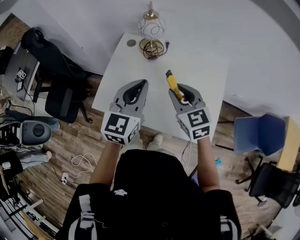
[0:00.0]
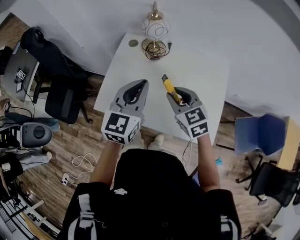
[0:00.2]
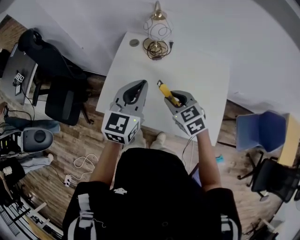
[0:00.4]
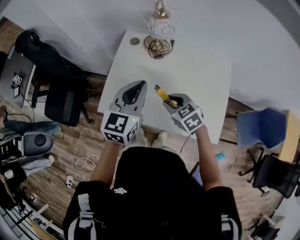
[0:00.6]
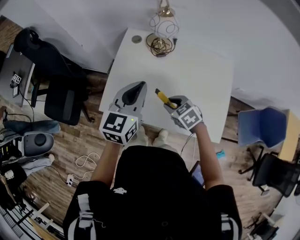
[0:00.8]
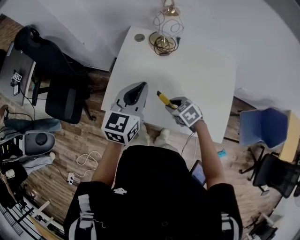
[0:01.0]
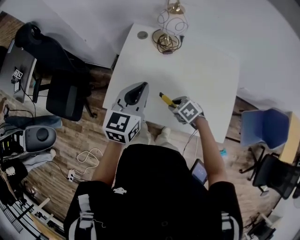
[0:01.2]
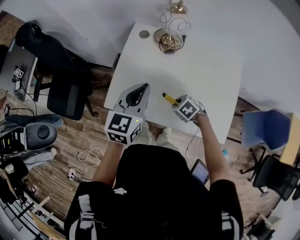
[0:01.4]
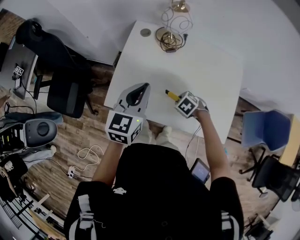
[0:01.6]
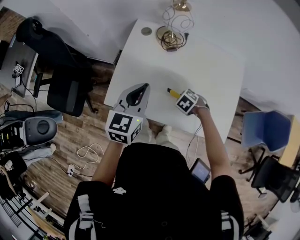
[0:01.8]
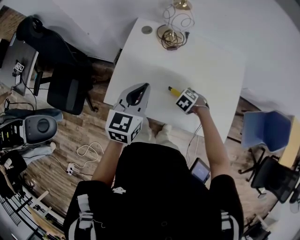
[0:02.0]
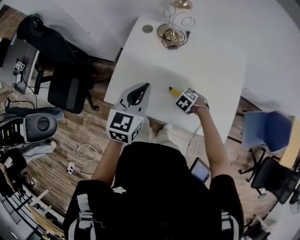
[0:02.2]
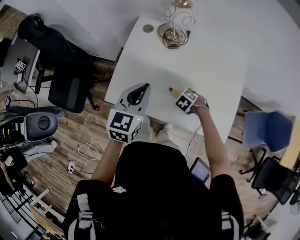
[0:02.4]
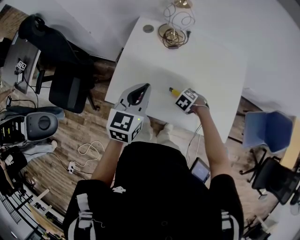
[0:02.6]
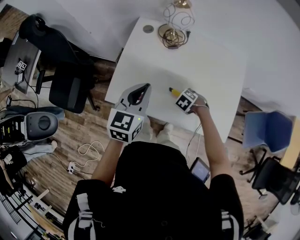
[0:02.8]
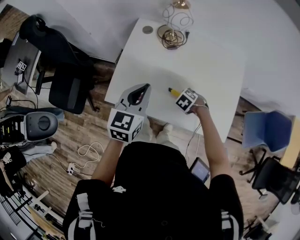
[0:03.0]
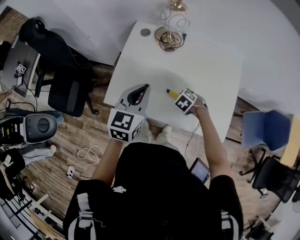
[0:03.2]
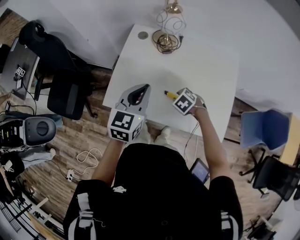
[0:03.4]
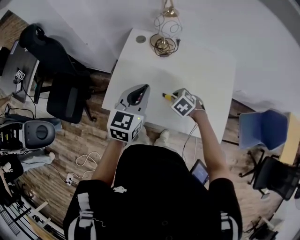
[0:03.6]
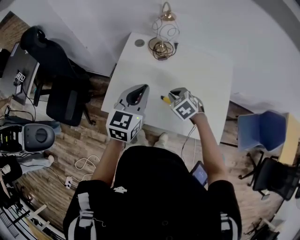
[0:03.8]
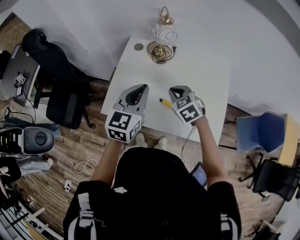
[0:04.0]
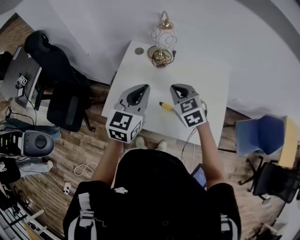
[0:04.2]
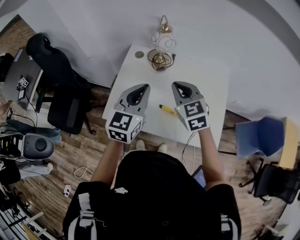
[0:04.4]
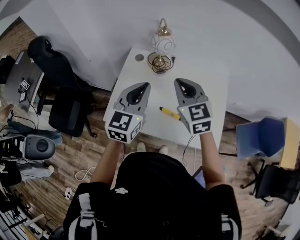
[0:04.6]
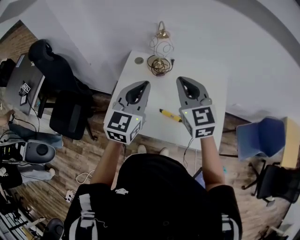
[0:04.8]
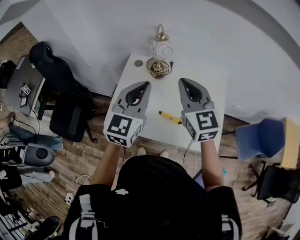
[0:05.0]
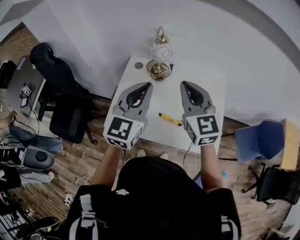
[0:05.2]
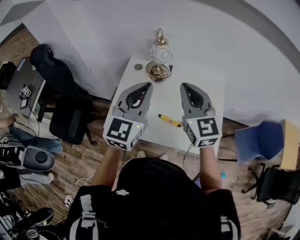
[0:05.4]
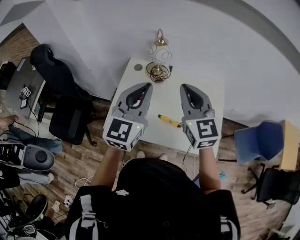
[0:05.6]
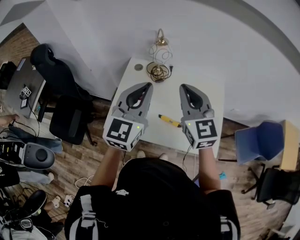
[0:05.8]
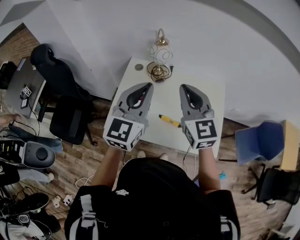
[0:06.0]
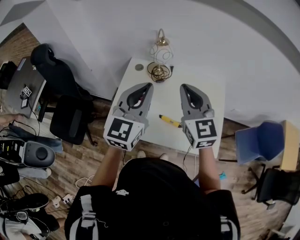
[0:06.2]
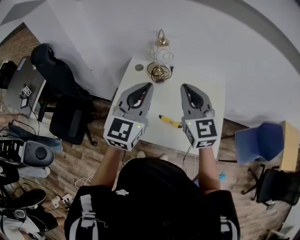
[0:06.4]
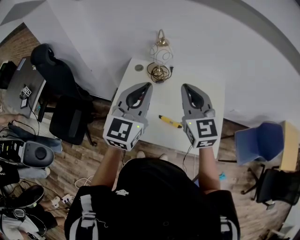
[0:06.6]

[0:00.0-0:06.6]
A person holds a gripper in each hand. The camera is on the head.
0:00.0 to 0:01.6: The left gripper ends up some 15 cm from where it was. Meanwhile the right gripper is displaced downward by about 30 cm, and tilts its fingers roughly 50 degrees downward.
0:01.6 to 0:03.2: The grippers move only a little.
0:03.2 to 0:05.0: The right gripper travels upward by roughly 40 cm, angles its fingers upward, by approximately 70 degrees, and closes; the left gripper heads upward, covering some 15 cm, and turns by some 20 degrees.
0:05.0 to 0:06.6: The grippers make only small movements.

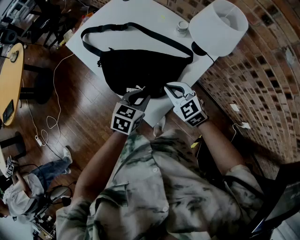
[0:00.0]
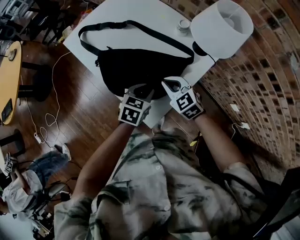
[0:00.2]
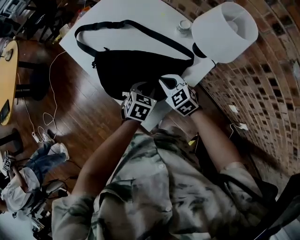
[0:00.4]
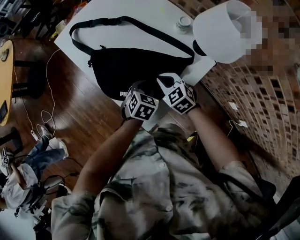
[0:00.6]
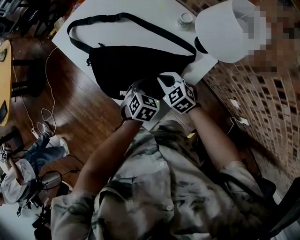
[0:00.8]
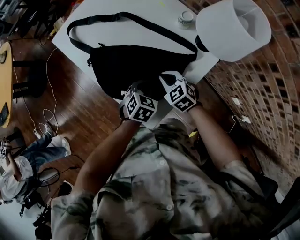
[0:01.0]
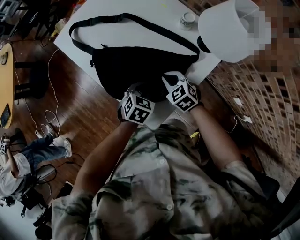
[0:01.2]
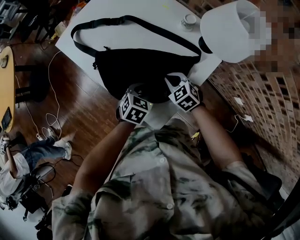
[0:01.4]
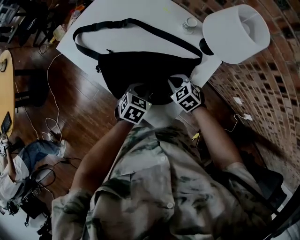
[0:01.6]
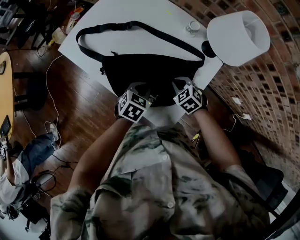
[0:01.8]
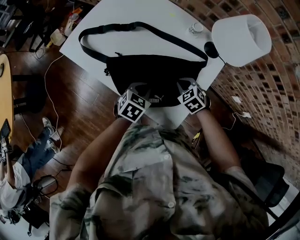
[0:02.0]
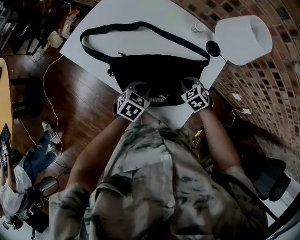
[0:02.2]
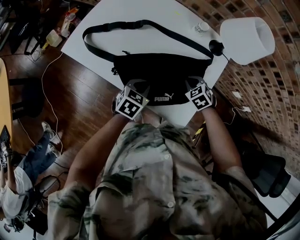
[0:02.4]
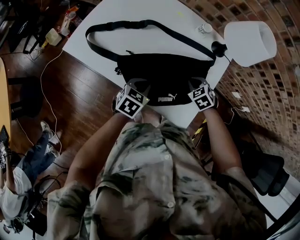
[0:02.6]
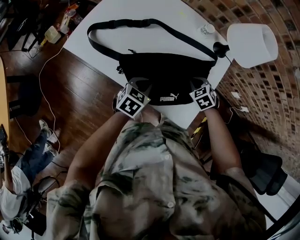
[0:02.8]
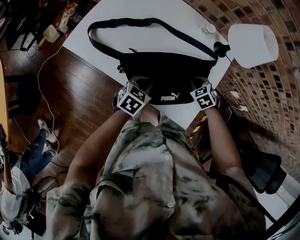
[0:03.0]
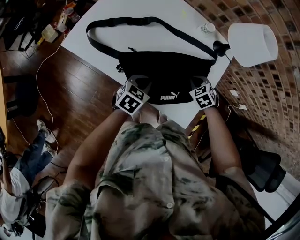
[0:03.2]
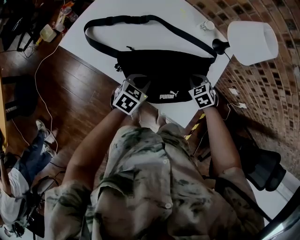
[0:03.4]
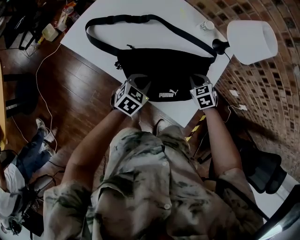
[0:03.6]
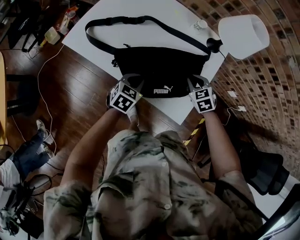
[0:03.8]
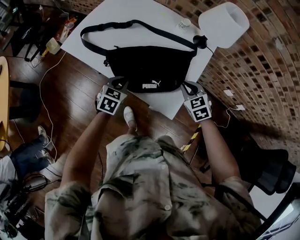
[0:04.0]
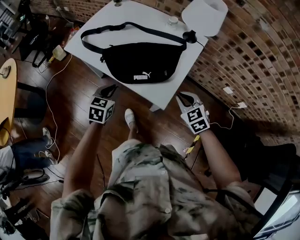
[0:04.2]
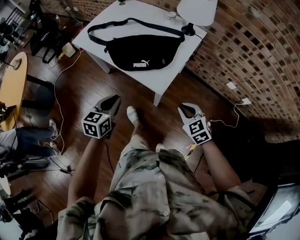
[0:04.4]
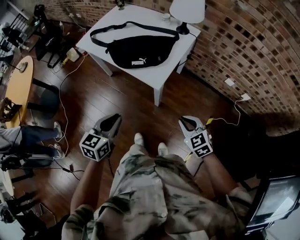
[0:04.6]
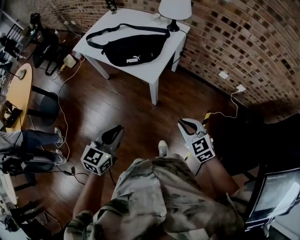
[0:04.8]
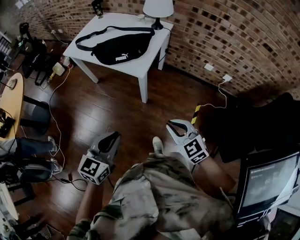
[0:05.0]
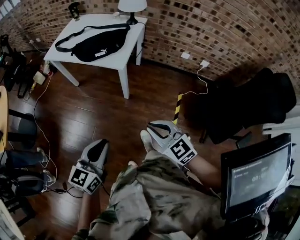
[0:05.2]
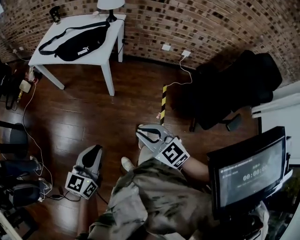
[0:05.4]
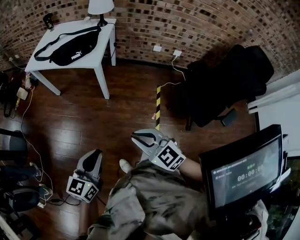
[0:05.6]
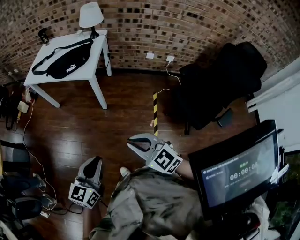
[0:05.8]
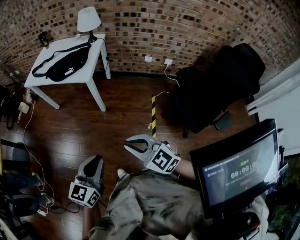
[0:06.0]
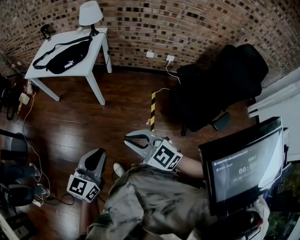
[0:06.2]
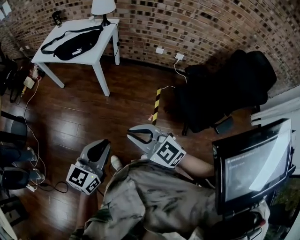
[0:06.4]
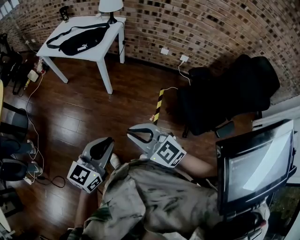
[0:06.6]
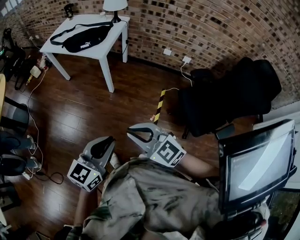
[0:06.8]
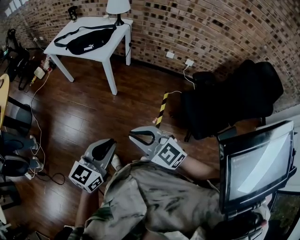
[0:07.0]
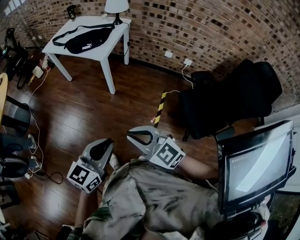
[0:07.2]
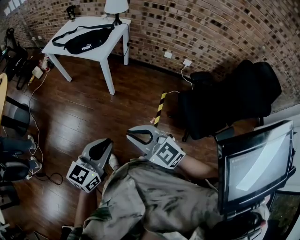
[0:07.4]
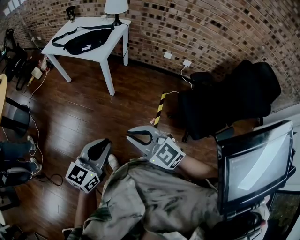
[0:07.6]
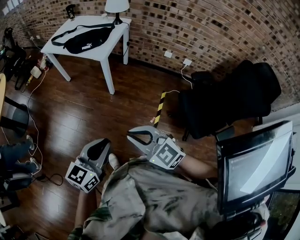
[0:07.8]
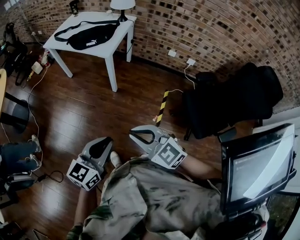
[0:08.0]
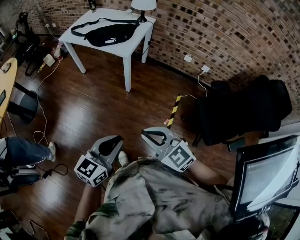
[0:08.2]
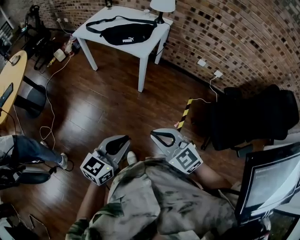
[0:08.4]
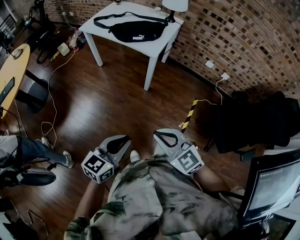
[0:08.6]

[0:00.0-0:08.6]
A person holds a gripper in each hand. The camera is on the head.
0:00.0 to 0:01.4: The grippers both shift downward and forward by some 10 cm.
0:01.4 to 0:02.8: The left gripper shifts by roughly 10 cm, and rotates roughly 20 degrees. Meanwhile the right gripper changes its angle by some 30 degrees.
0:02.8 to 0:04.4: The right gripper is displaced backward and to the right by approximately 35 cm, and changes its angle by about 30 degrees. The left gripper heads backward and upward, covering about 30 cm, and swivels roughly 30 degrees.
0:04.4 to 0:05.8: Both grippers are carried backward, some 50 cm. The right gripper rotates some 20 degrees; the left gripper turns by about 30 degrees.
0:05.8 to 0:07.2: The right gripper moves to the right and backward, about 10 cm. Meanwhile the left gripper moves to the right and backward, approximately 15 cm.
0:07.2 to 0:08.6: Both grippers move to the left and forward, approximately 20 cm.

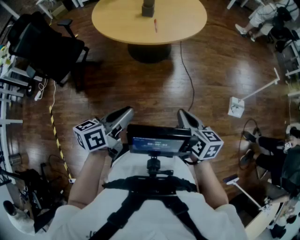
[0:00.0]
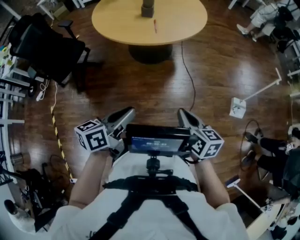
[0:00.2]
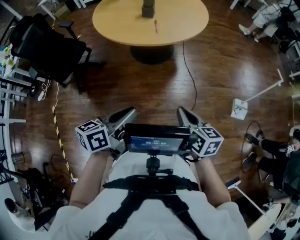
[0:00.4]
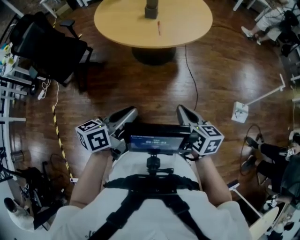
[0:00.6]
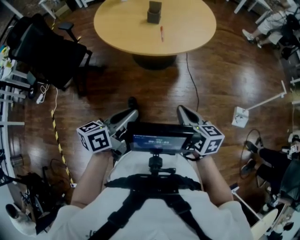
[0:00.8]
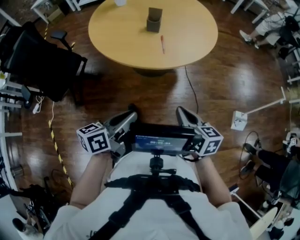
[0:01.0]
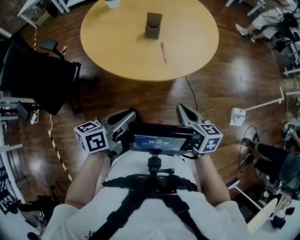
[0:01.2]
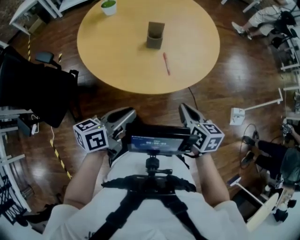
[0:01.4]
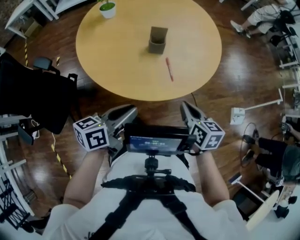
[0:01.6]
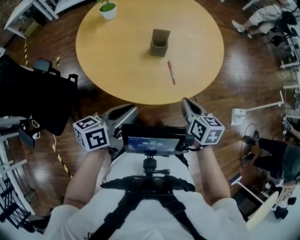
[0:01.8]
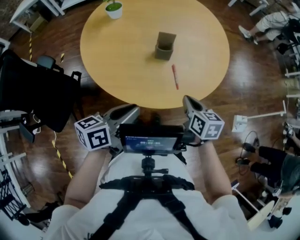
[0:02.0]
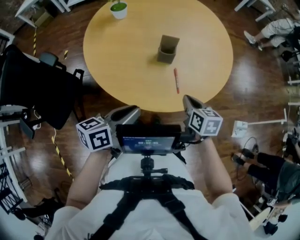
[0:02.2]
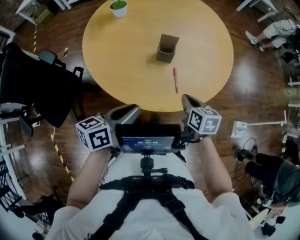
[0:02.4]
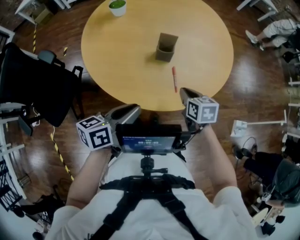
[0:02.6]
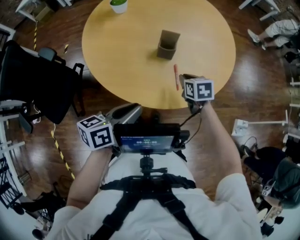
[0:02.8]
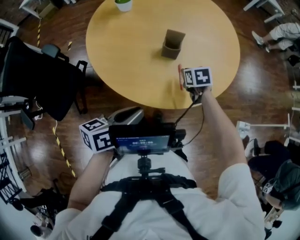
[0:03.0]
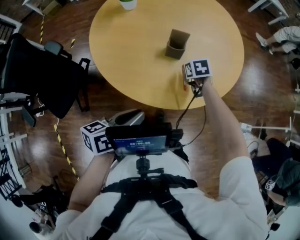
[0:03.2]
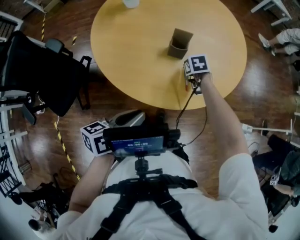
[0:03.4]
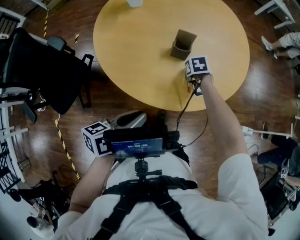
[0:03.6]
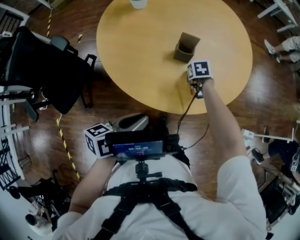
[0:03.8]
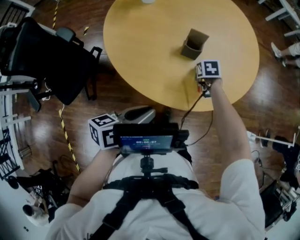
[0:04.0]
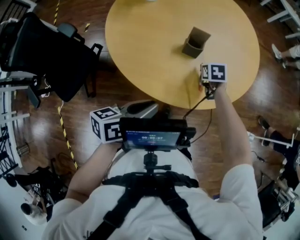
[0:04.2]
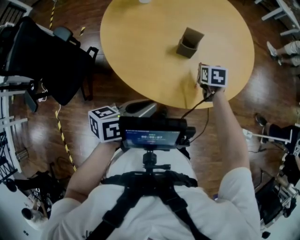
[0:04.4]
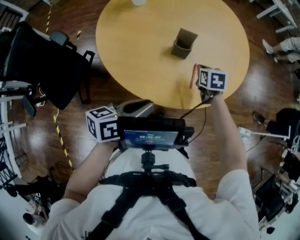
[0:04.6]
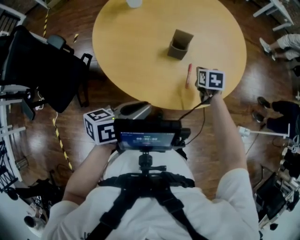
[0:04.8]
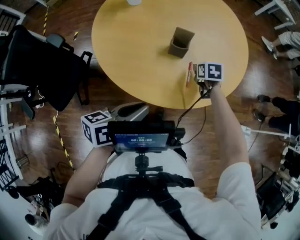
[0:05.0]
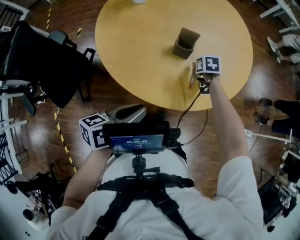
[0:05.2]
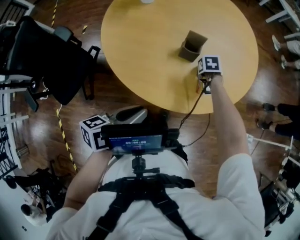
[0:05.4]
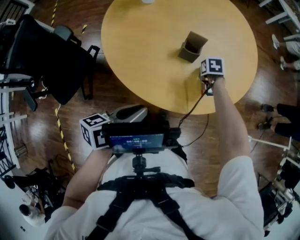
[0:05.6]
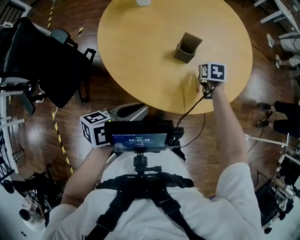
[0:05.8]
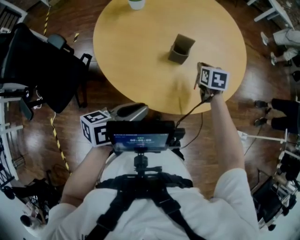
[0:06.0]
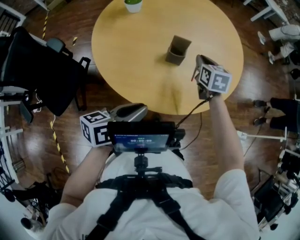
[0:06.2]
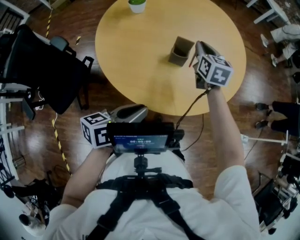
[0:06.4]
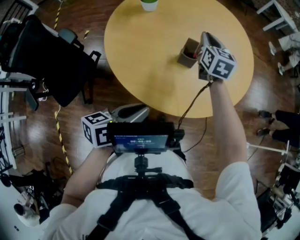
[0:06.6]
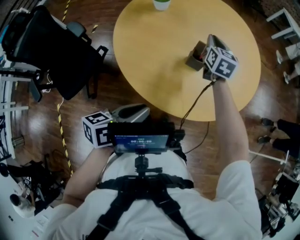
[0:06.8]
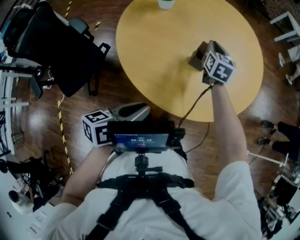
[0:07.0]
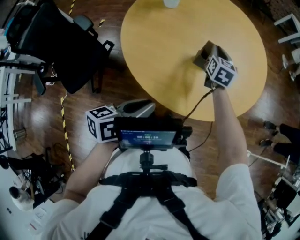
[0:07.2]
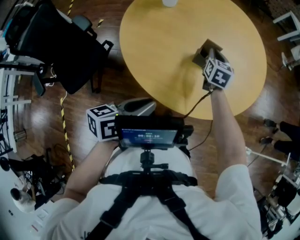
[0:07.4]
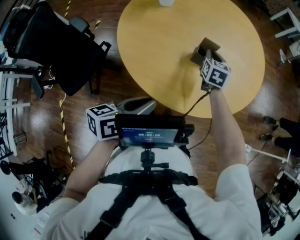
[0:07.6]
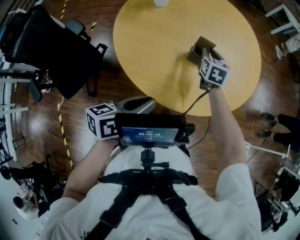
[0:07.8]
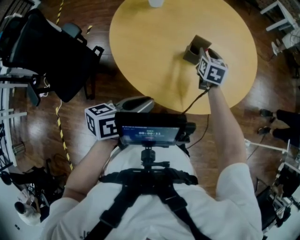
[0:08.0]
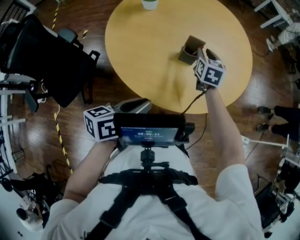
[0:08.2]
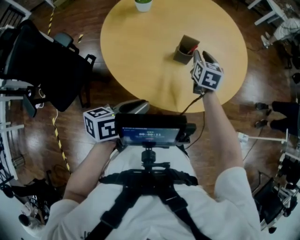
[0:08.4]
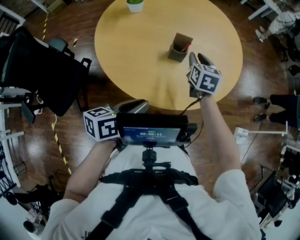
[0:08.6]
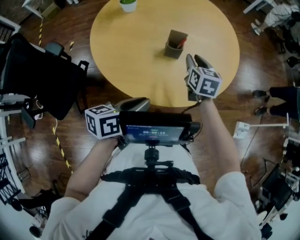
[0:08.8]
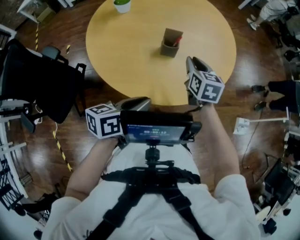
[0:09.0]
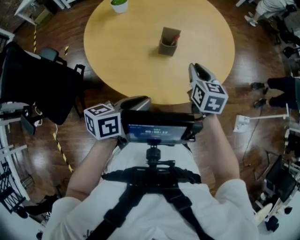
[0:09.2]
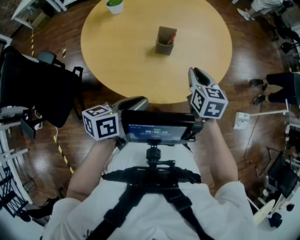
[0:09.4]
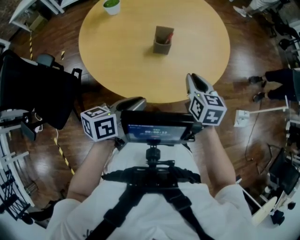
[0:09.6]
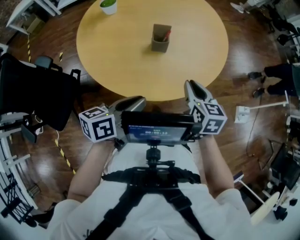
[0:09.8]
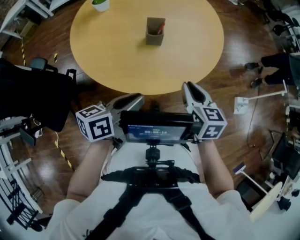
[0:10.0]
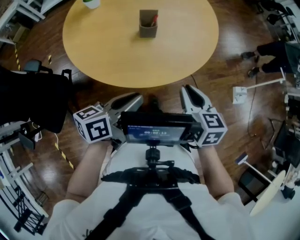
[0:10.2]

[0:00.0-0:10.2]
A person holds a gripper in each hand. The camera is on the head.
0:00.0 to 0:01.4: Both grippers move forward and to the left, about 35 cm.
0:01.4 to 0:03.0: The right gripper heads forward and downward, covering some 30 cm, and swivels approximately 30 degrees. Meanwhile the left gripper goes roughly 5 cm forward.
0:04.4 to 0:05.8: The right gripper moves about 5 cm downward and comes back.
0:05.8 to 0:07.2: The right gripper heads upward, to the left and forward, covering roughly 15 cm, and angles its fingers upward, by some 40 degrees.
0:07.2 to 0:08.8: The right gripper is displaced backward and to the right by about 10 cm.
0:08.8 to 0:10.2: The right gripper is displaced backward and to the right by approximately 25 cm. The left gripper moves some 5 cm.
